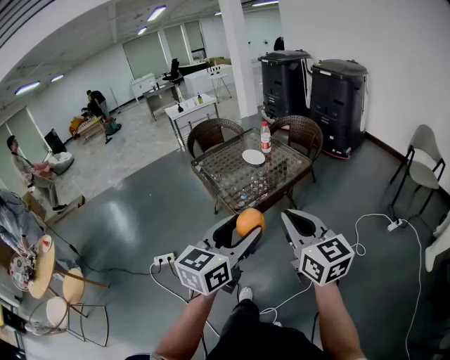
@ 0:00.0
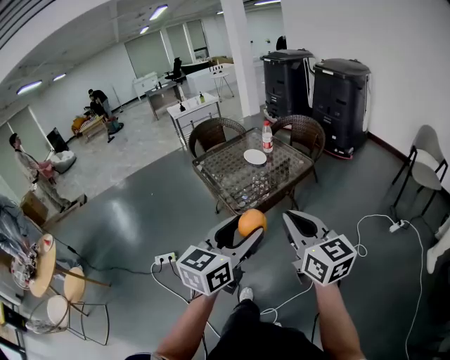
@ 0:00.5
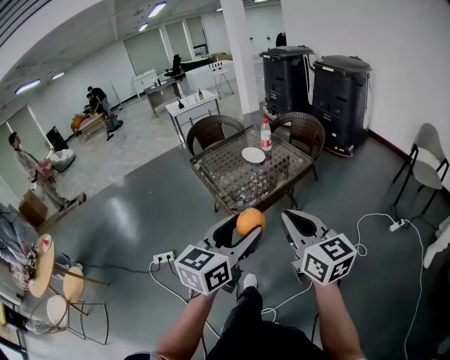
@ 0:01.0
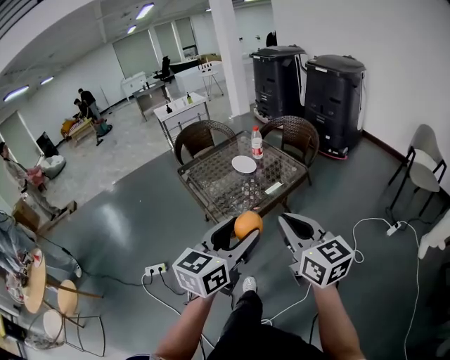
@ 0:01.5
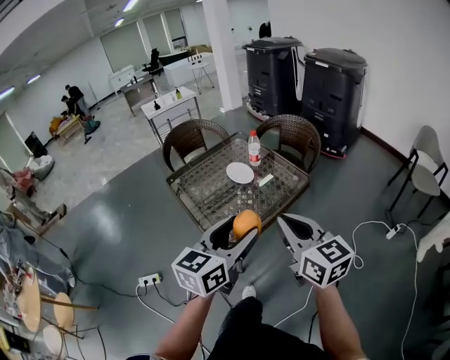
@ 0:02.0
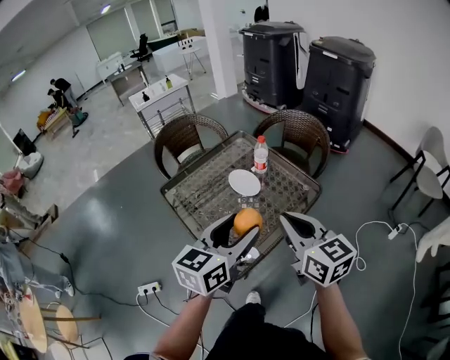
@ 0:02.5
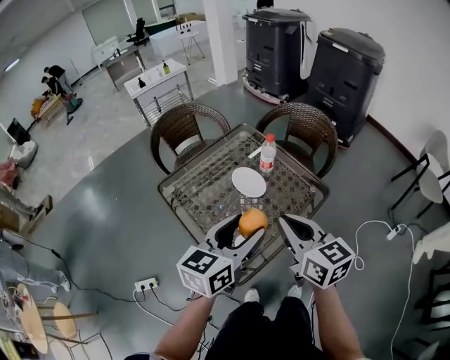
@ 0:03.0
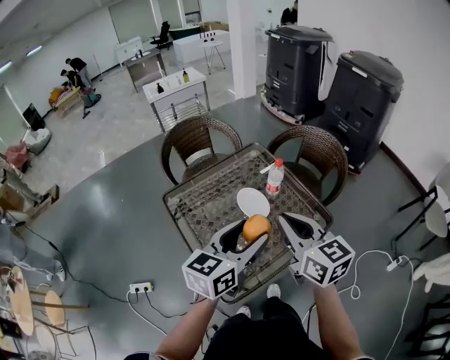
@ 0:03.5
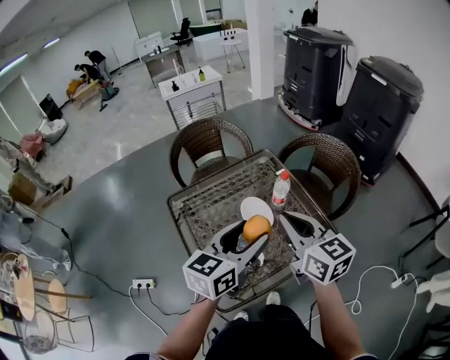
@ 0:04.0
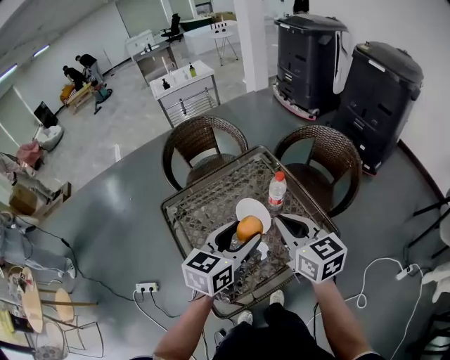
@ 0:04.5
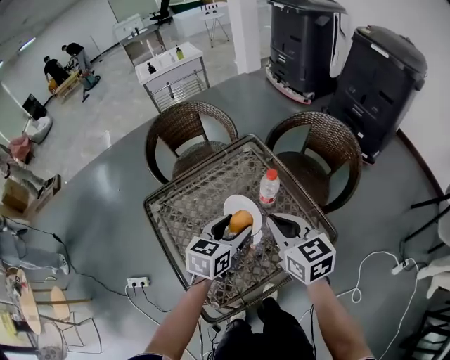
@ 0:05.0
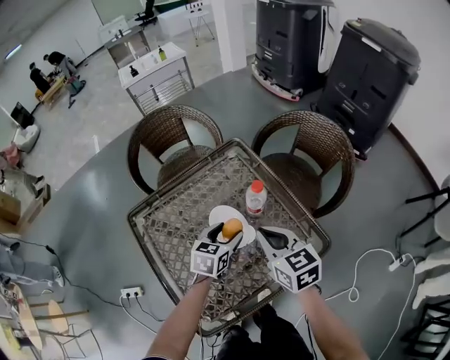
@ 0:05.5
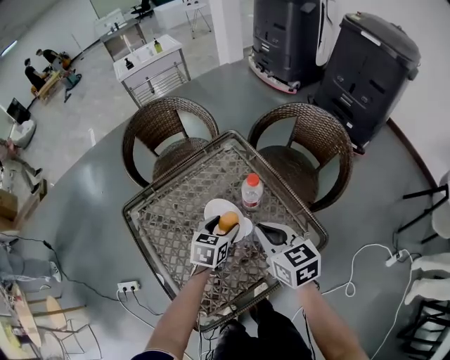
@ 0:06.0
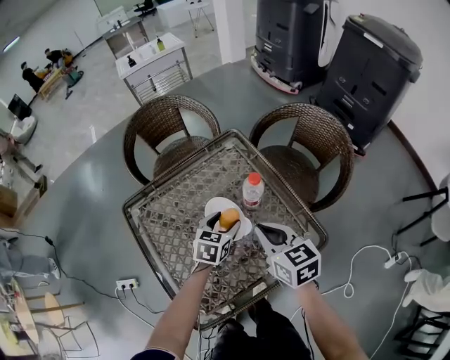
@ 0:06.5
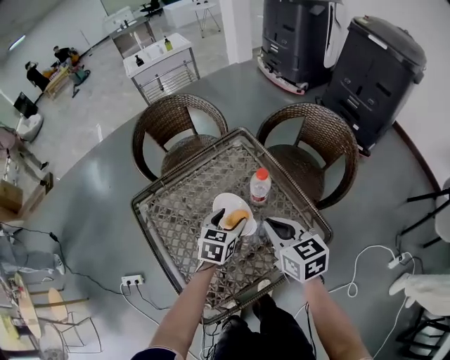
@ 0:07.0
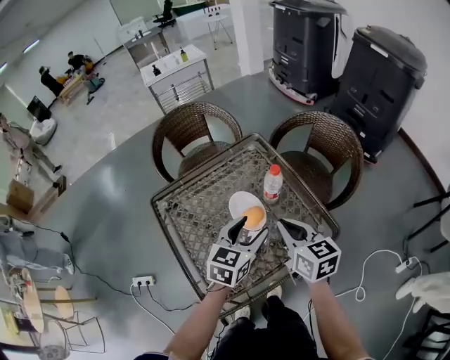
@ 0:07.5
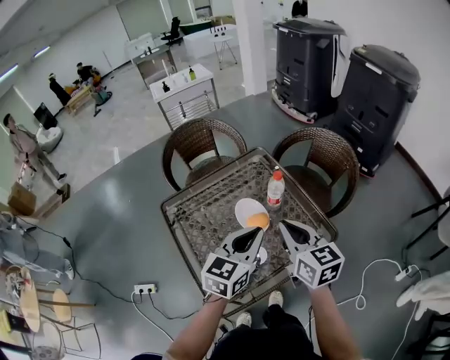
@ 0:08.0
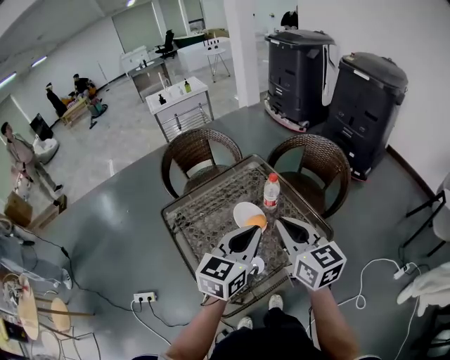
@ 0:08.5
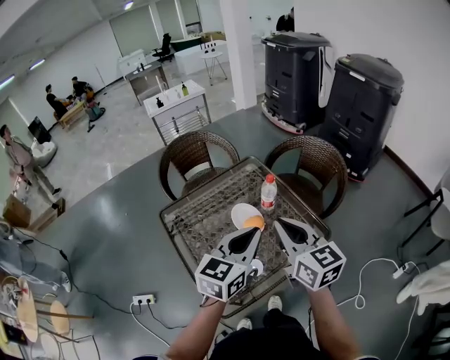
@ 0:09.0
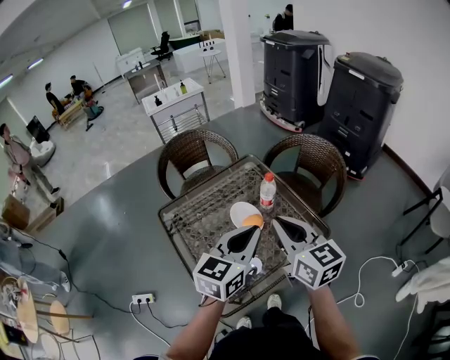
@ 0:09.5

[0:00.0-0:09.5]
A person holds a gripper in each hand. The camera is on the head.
0:00.0 to 0:02.0: Both grippers move forward, approximately 25 cm.
0:02.0 to 0:04.0: Both grippers move forward, approximately 30 cm.
0:04.0 to 0:05.5: The right gripper shifts about 20 cm downward and forward. The left gripper is displaced downward and forward by about 30 cm, and turns by roughly 30 degrees.
0:05.5 to 0:07.5: The left gripper travels upward and backward by about 15 cm, while the right gripper moves roughly 5 cm.
0:07.5 to 0:09.5: Both grippers travel together upward and backward, roughly 15 cm. The left gripper closes its fingers.

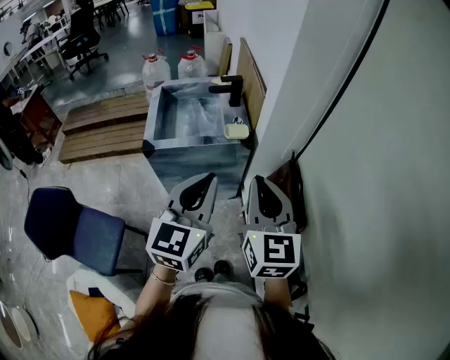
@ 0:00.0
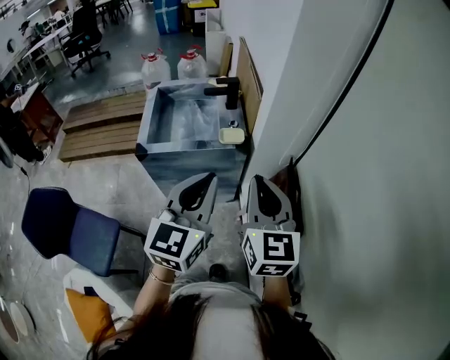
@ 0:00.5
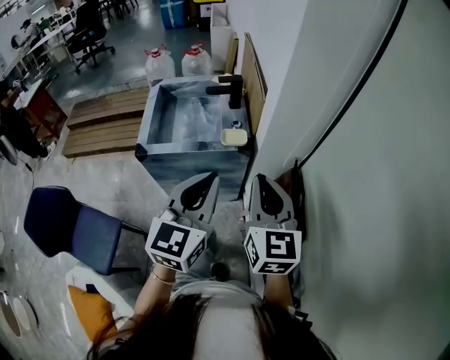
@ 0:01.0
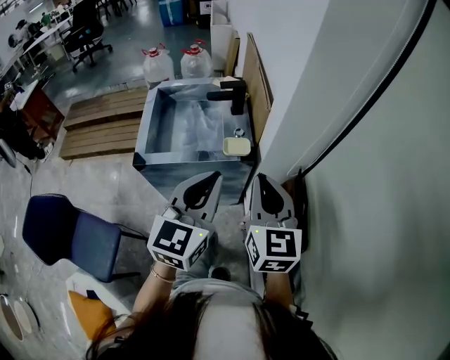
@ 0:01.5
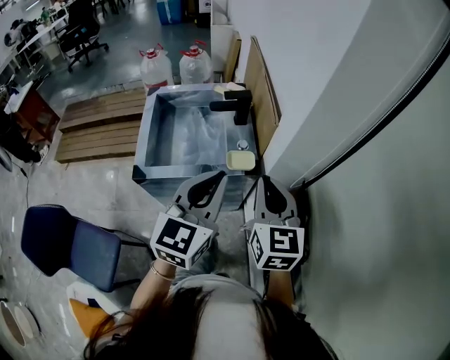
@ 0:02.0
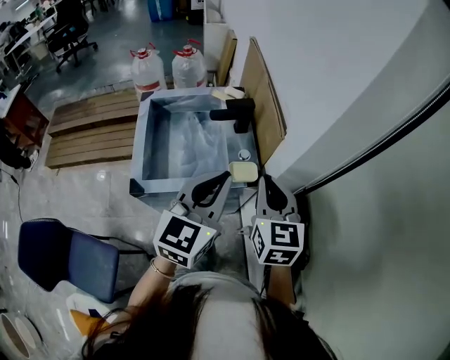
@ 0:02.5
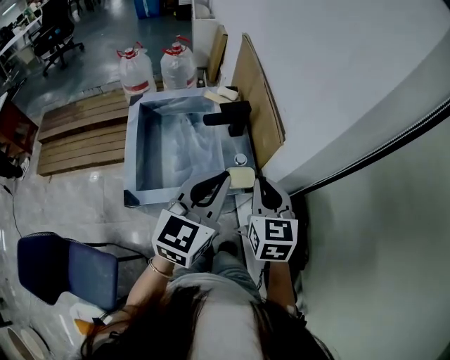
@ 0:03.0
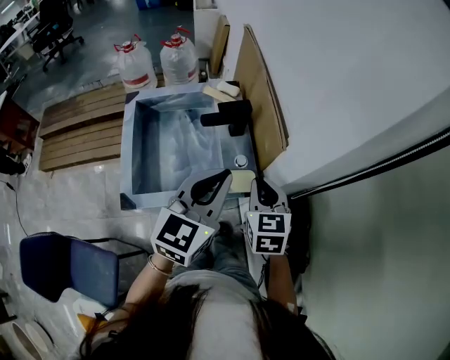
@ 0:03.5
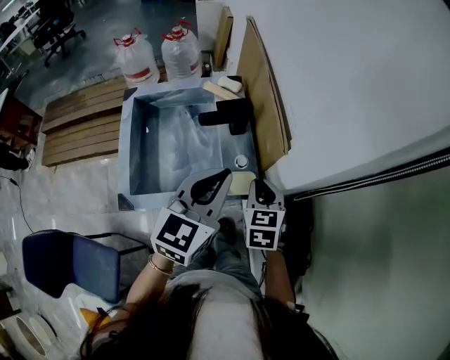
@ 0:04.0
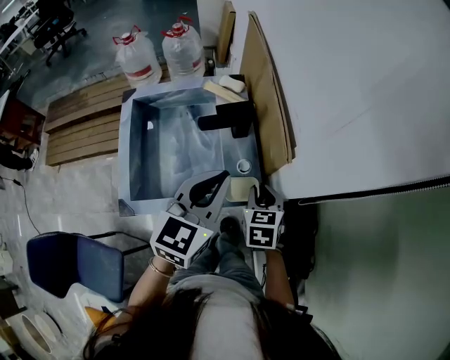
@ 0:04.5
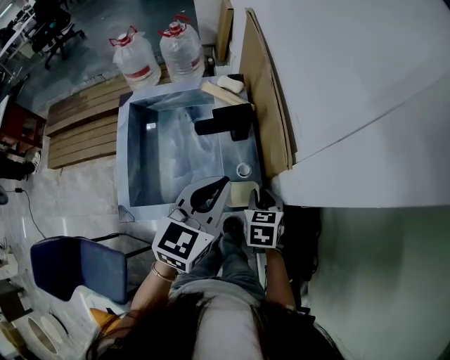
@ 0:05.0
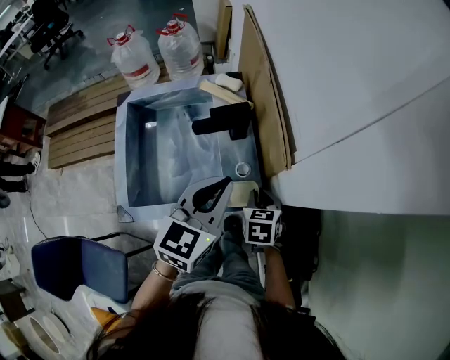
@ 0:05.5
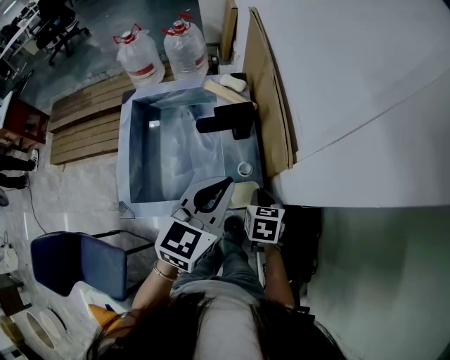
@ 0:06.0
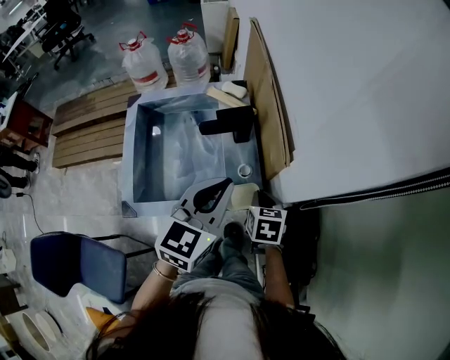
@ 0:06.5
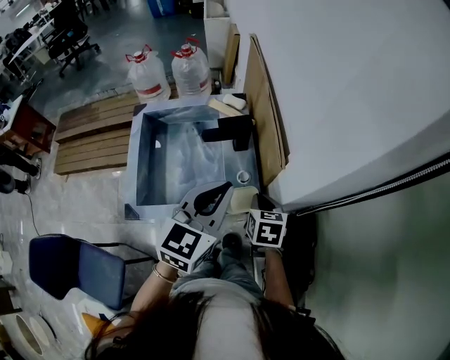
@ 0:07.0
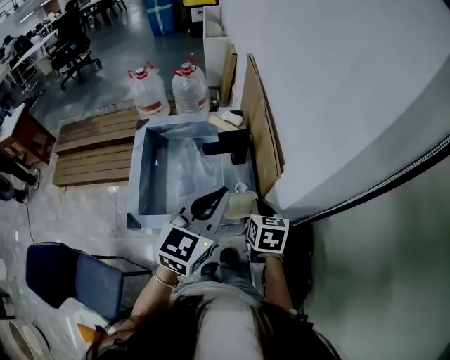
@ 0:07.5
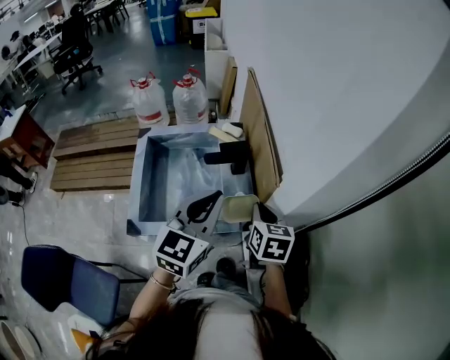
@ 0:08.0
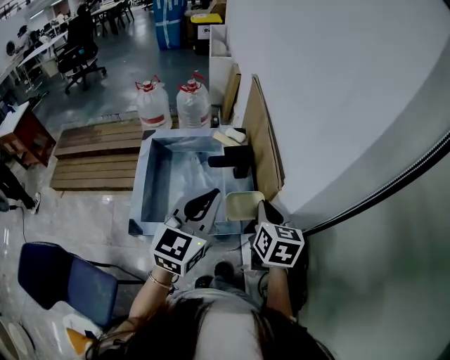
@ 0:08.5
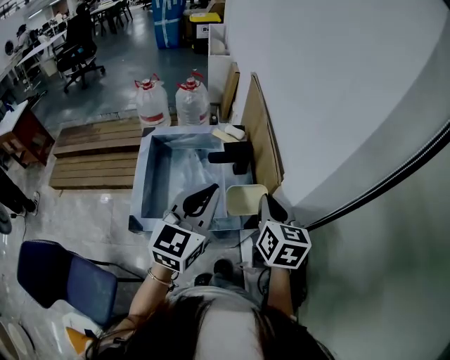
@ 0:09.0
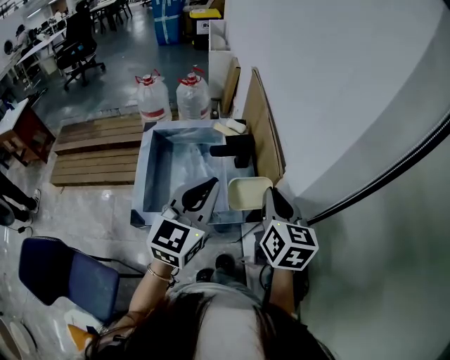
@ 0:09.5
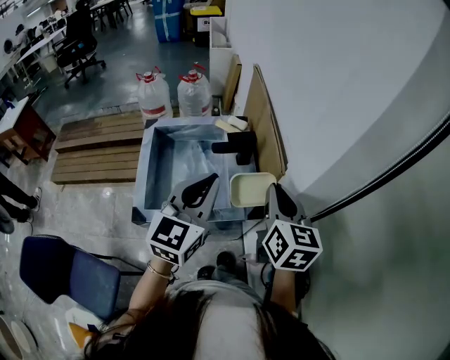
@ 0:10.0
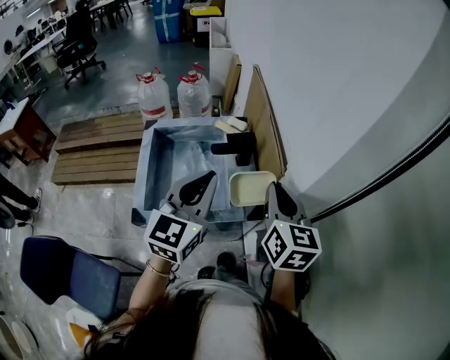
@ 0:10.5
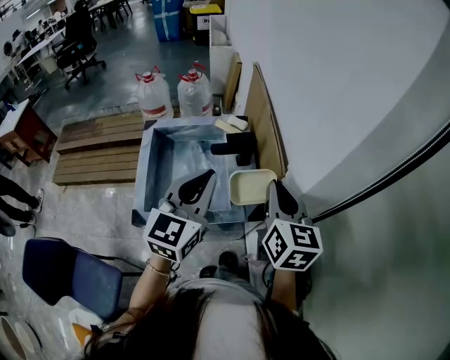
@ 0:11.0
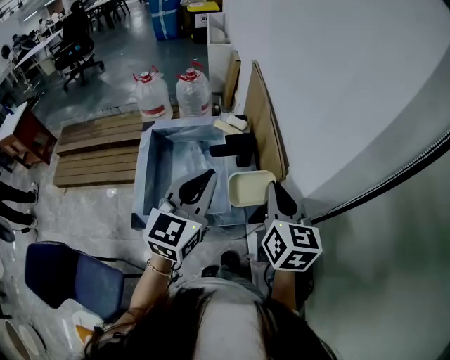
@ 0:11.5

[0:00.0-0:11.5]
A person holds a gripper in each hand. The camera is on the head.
0:00.0 to 0:02.0: Both grippers move forward, some 20 cm.
0:02.0 to 0:04.0: The right gripper heads downward and forward, covering roughly 25 cm, and changes its angle by about 30 degrees. The left gripper is displaced forward by some 15 cm.
0:04.0 to 0:06.0: The left gripper ends up approximately 5 cm from where it was. The right gripper goes some 10 cm downward.
0:06.0 to 0:07.5: The right gripper is displaced upward by about 10 cm, while the left gripper heads upward, covering roughly 5 cm.
0:07.5 to 0:09.5: The left gripper moves some 5 cm, while the right gripper is displaced upward by roughly 15 cm, and swivels roughly 20 degrees.
0:09.5 to 0:11.5: The grippers move only a little.

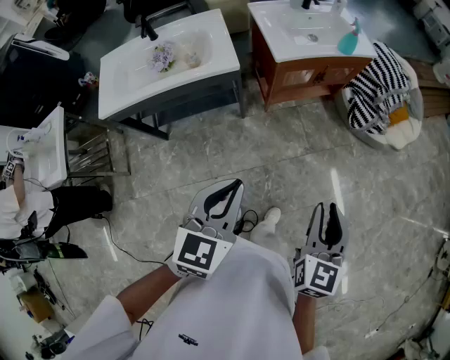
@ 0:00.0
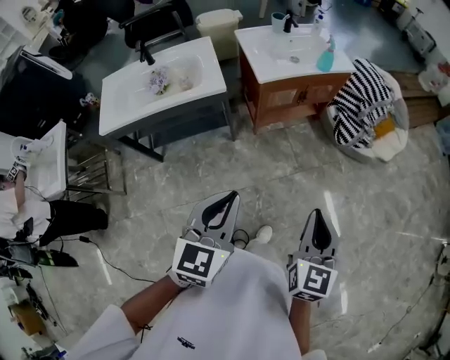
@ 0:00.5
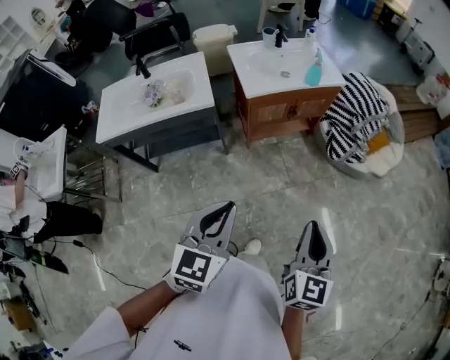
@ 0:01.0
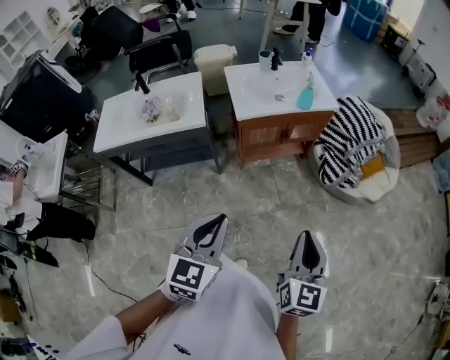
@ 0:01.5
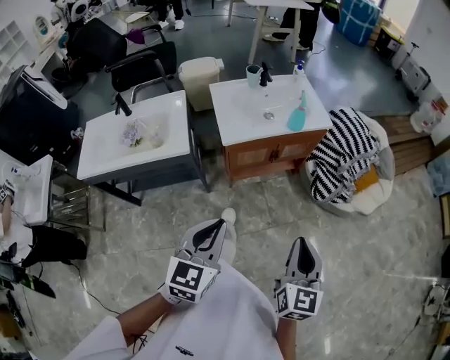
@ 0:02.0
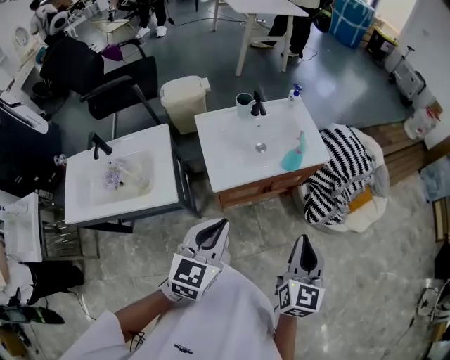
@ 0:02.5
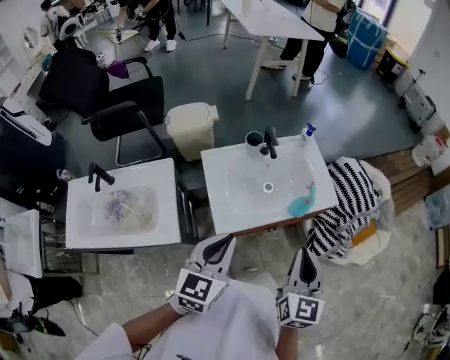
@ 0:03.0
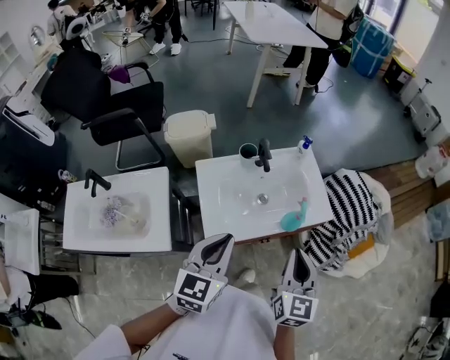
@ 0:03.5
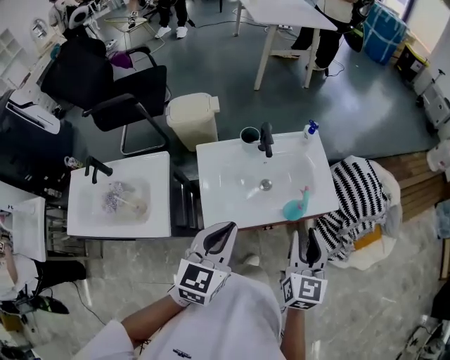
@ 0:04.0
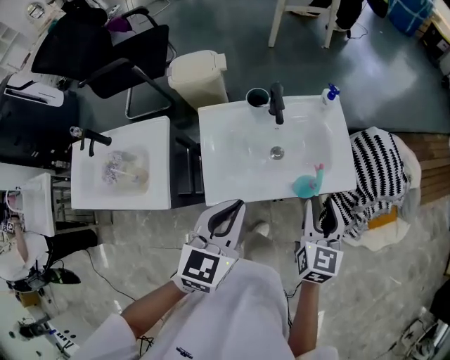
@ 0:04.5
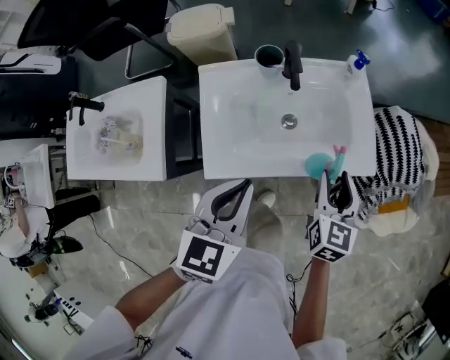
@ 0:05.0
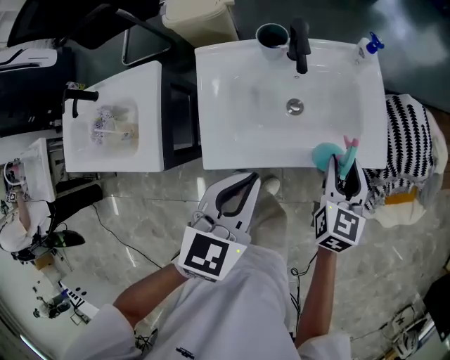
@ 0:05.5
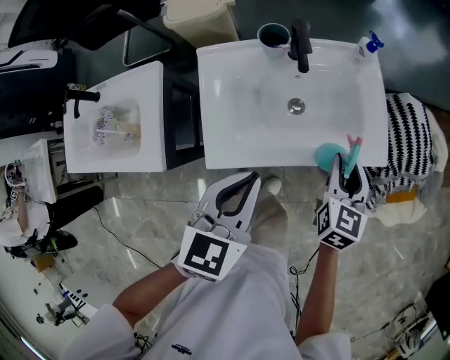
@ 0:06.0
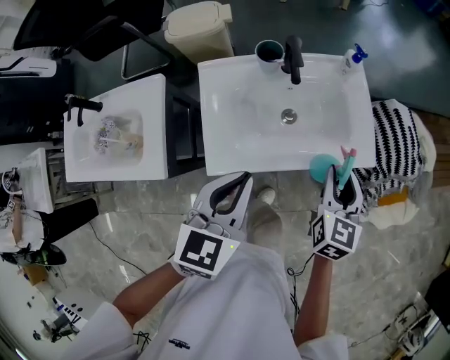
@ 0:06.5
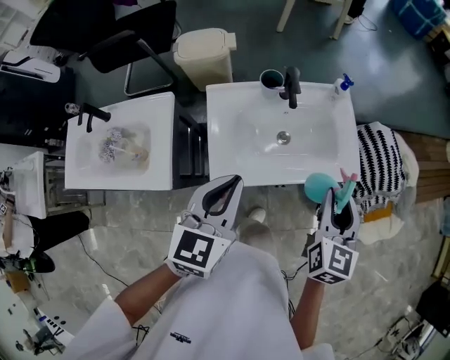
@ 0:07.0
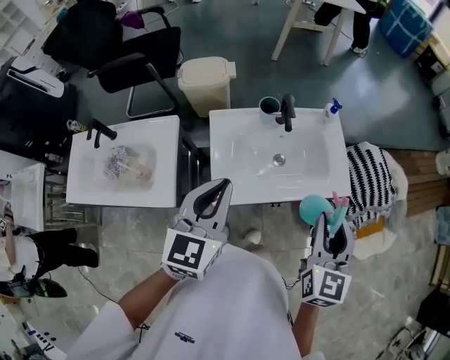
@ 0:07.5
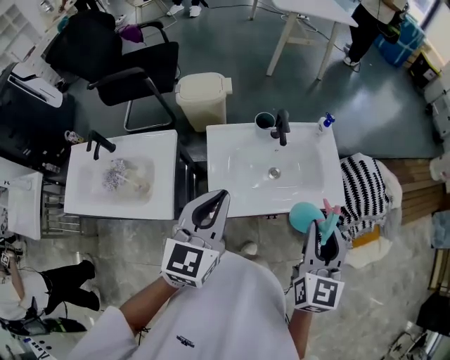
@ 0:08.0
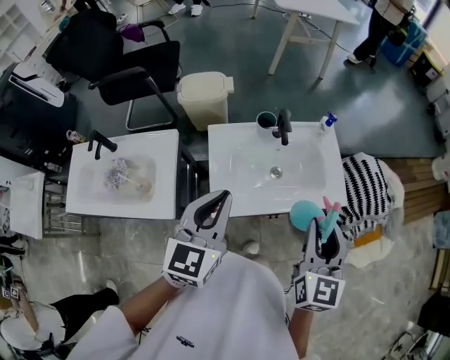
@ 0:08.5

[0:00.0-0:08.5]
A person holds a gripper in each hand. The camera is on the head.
0:00.0 to 0:02.0: The left gripper goes some 20 cm to the right and forward, while the right gripper travels forward and to the right by approximately 20 cm, and closes up.
0:02.0 to 0:04.0: The pair of grippers is taken forward, approximately 40 cm. The right gripper opens.
0:04.0 to 0:06.5: The left gripper shifts roughly 10 cm downward; the right gripper travels downward and forward by approximately 15 cm.
0:06.5 to 0:08.5: The right gripper is displaced upward and backward by approximately 20 cm, while the left gripper moves upward and to the left, approximately 15 cm.
